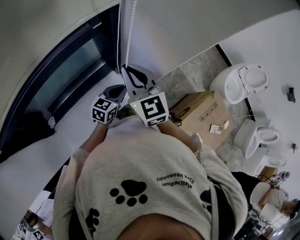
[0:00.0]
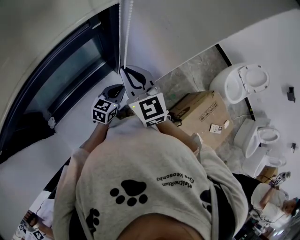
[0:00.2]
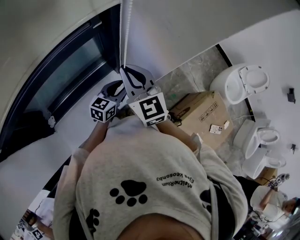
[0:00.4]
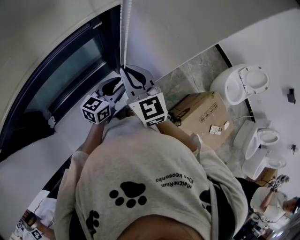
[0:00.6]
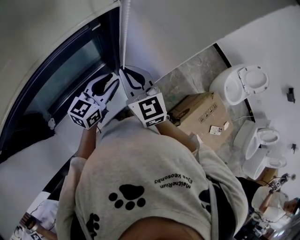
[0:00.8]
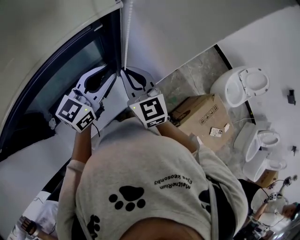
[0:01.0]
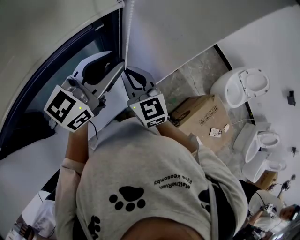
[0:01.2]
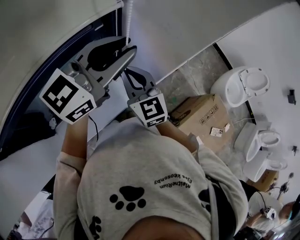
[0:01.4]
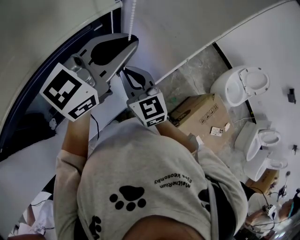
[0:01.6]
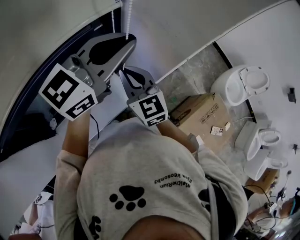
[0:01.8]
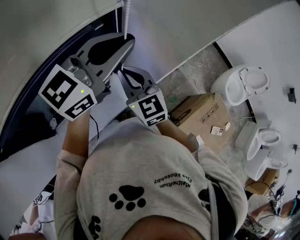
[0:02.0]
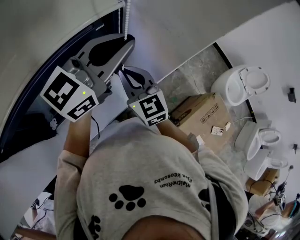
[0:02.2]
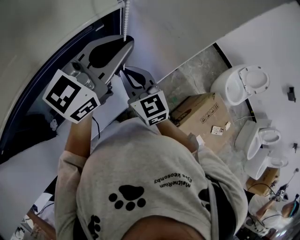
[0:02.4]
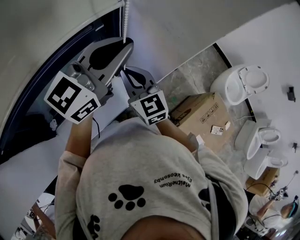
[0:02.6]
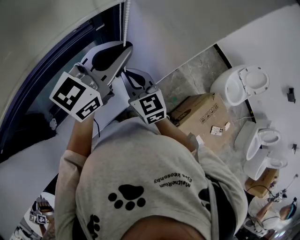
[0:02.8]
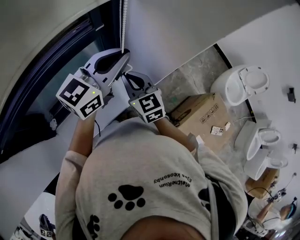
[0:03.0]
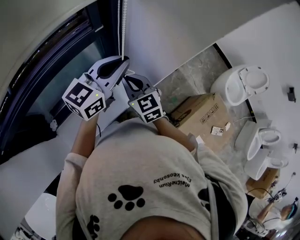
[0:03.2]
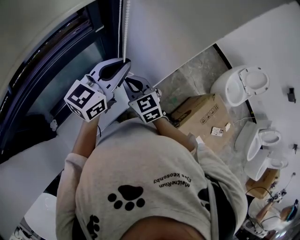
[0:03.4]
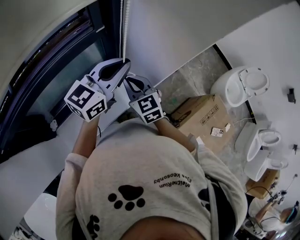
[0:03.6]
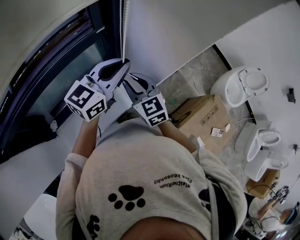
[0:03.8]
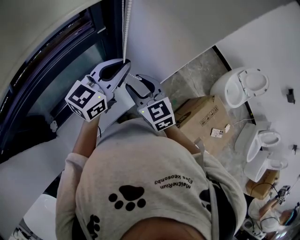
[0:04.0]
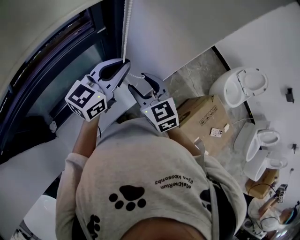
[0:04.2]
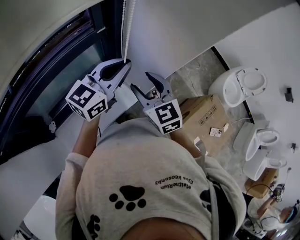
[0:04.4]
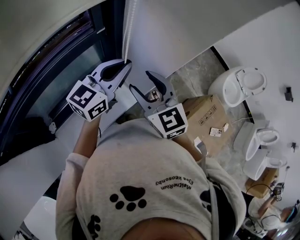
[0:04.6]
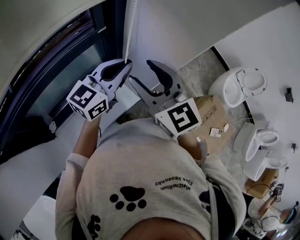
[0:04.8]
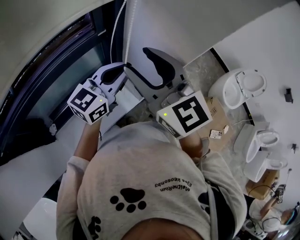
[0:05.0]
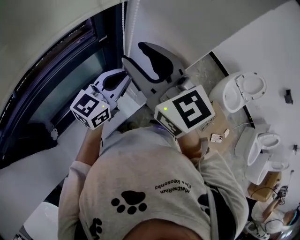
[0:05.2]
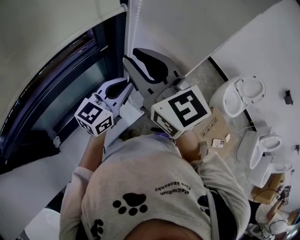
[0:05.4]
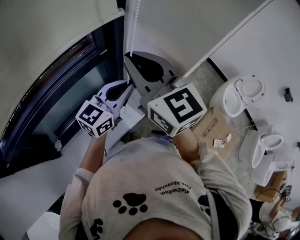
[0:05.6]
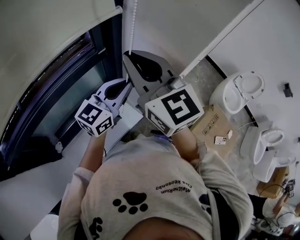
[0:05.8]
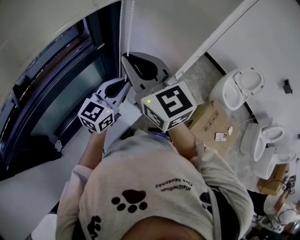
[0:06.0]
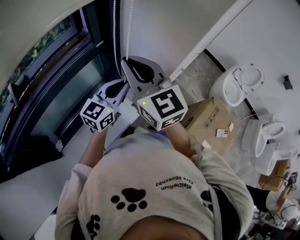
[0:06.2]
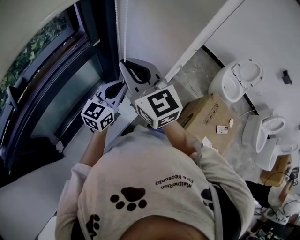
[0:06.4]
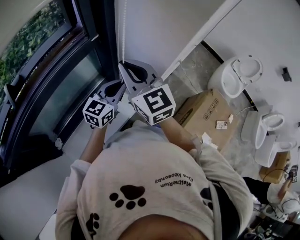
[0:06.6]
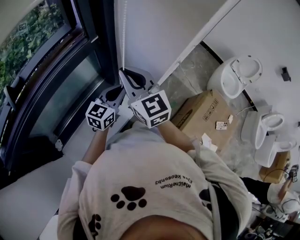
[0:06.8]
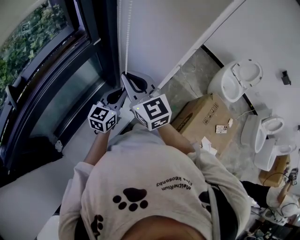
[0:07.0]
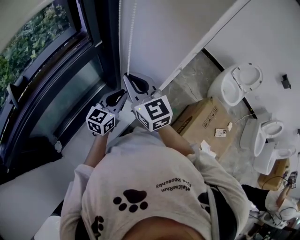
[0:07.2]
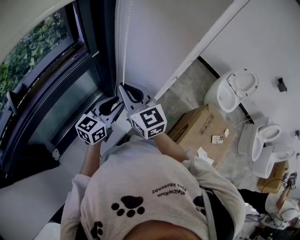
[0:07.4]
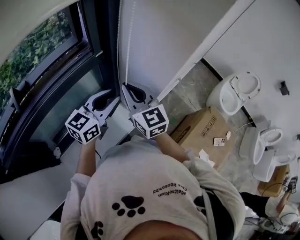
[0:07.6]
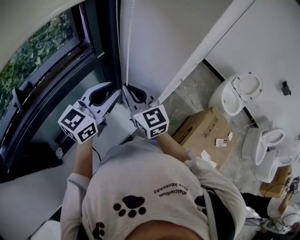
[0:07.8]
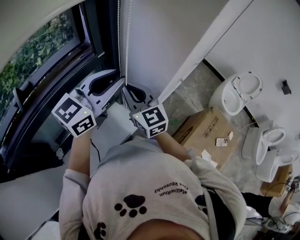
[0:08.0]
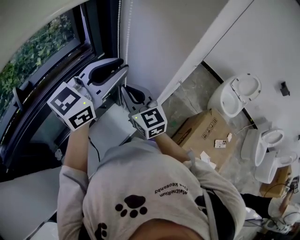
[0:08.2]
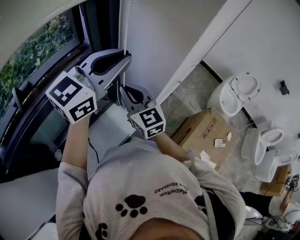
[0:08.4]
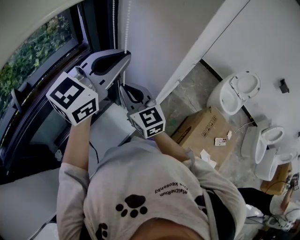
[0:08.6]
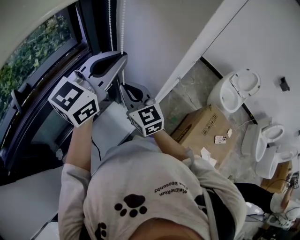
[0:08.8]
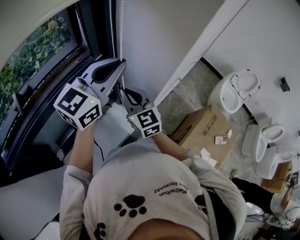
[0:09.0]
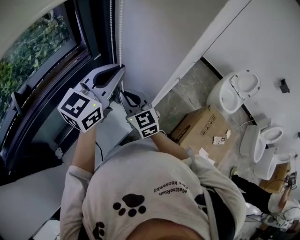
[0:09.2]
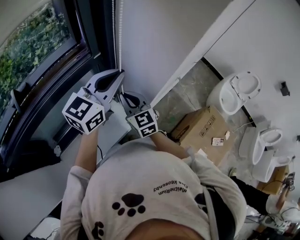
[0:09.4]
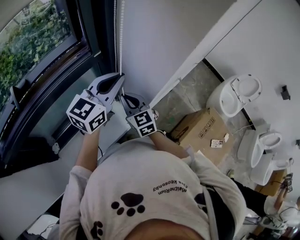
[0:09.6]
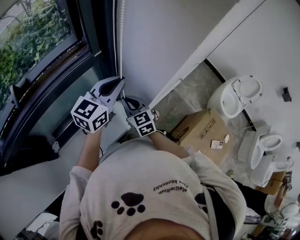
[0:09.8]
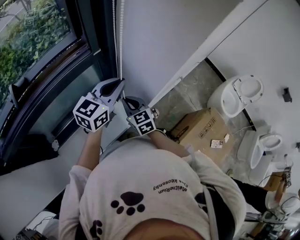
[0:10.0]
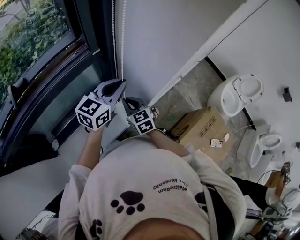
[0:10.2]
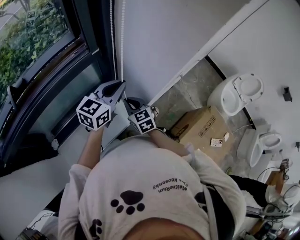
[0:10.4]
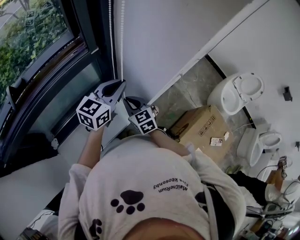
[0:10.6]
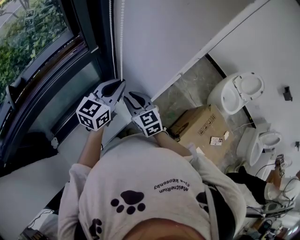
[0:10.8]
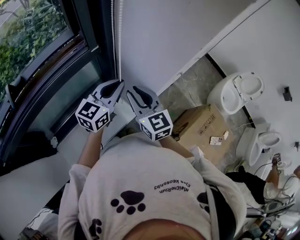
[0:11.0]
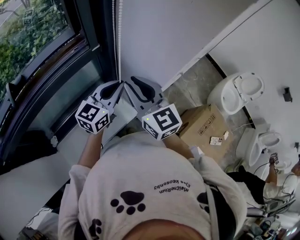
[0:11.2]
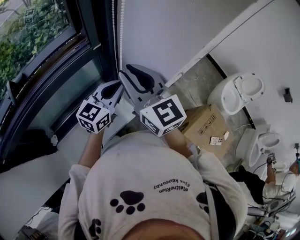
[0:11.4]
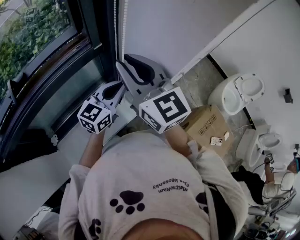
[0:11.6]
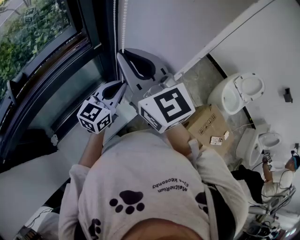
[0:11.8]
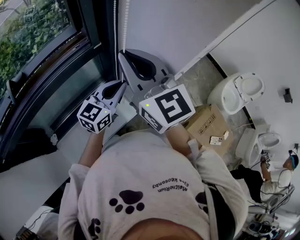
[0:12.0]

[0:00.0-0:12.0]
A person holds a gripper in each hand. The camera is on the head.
0:00.0 to 0:01.6: The left gripper is displaced upward by roughly 35 cm, changes its angle by roughly 30 degrees, and opens, then closes once more.
0:01.6 to 0:03.0: Both grippers move downward, roughly 5 cm.
0:03.0 to 0:04.4: The right gripper changes place by some 5 cm, and opens up.
0:04.4 to 0:06.0: The right gripper goes approximately 15 cm upward, swivels about 20 degrees, and closes its fingers.
0:06.0 to 0:07.6: The right gripper shifts some 15 cm downward; the left gripper travels downward and back again, roughly 15 cm each way, and opens.
0:07.6 to 0:09.0: The left gripper heads upward, covering approximately 15 cm, and closes its fingers.
0:09.0 to 0:10.4: Both grippers travel together downward, about 15 cm. The right gripper swivels roughly 20 degrees.
0:10.4 to 0:12.0: The right gripper heads upward, covering approximately 35 cm, and tilts its fingers some 30 degrees upward.

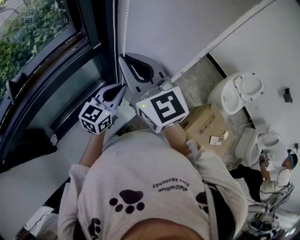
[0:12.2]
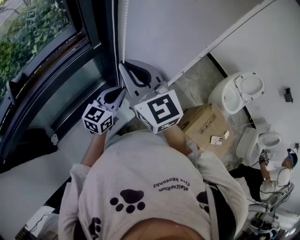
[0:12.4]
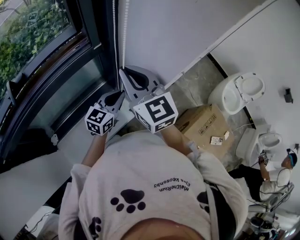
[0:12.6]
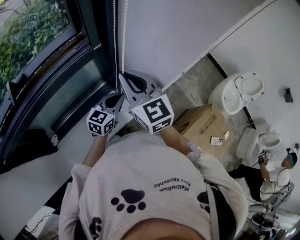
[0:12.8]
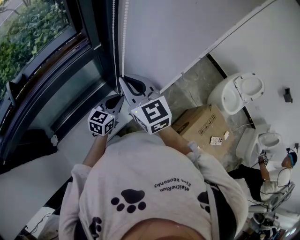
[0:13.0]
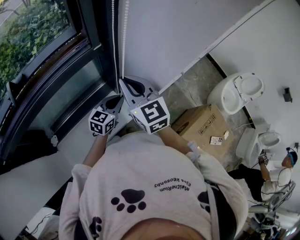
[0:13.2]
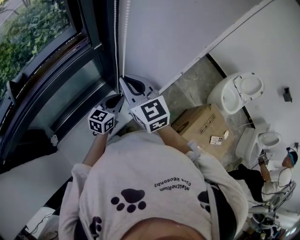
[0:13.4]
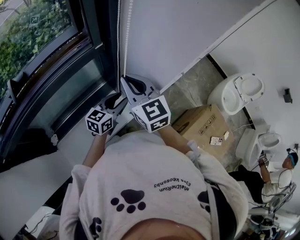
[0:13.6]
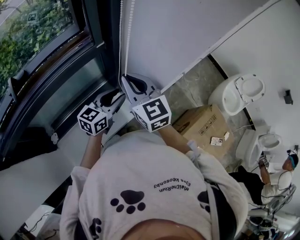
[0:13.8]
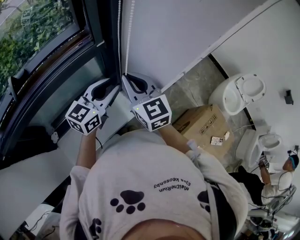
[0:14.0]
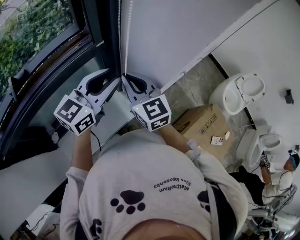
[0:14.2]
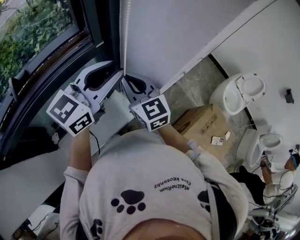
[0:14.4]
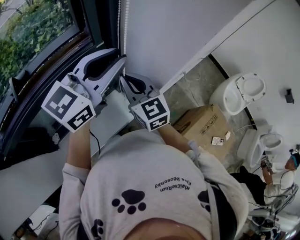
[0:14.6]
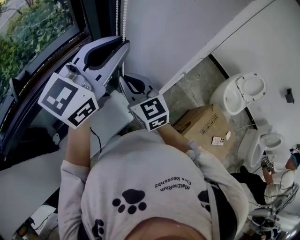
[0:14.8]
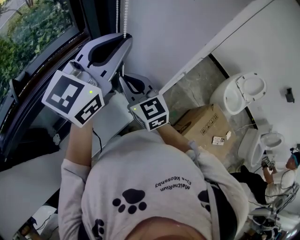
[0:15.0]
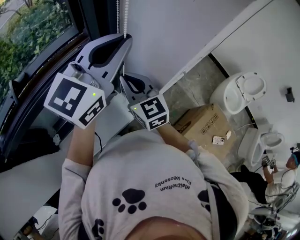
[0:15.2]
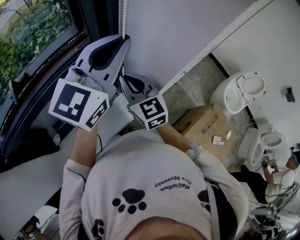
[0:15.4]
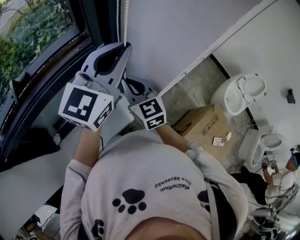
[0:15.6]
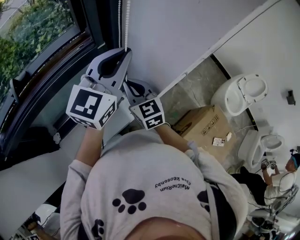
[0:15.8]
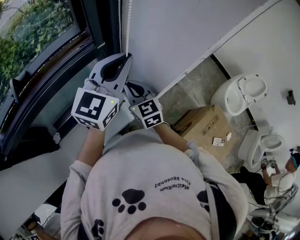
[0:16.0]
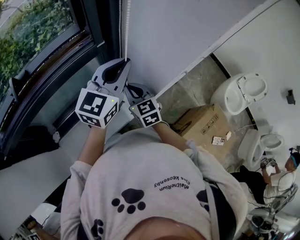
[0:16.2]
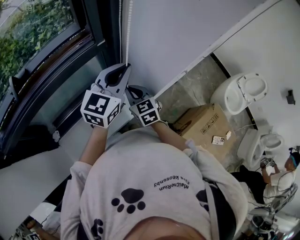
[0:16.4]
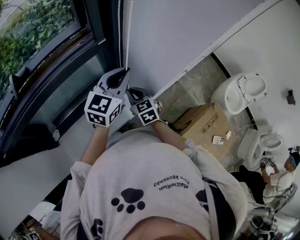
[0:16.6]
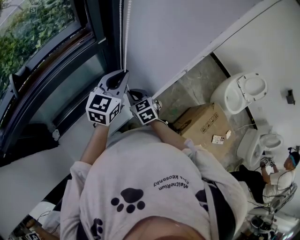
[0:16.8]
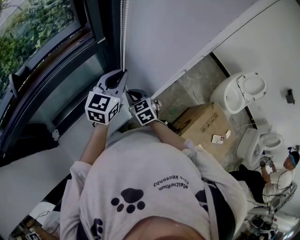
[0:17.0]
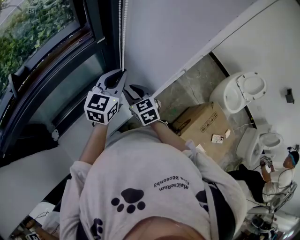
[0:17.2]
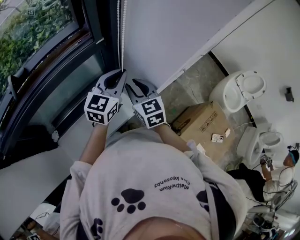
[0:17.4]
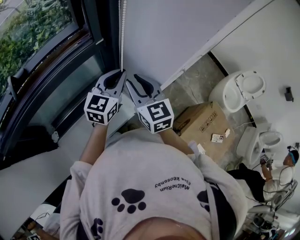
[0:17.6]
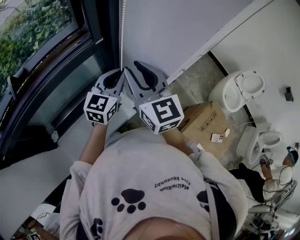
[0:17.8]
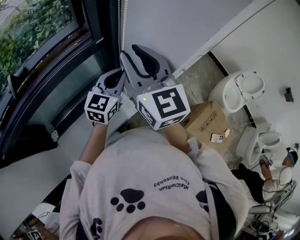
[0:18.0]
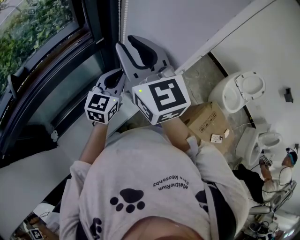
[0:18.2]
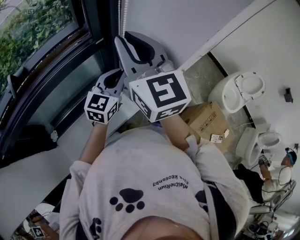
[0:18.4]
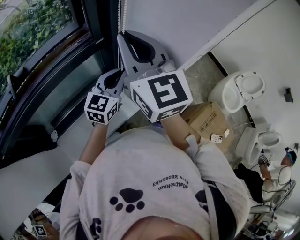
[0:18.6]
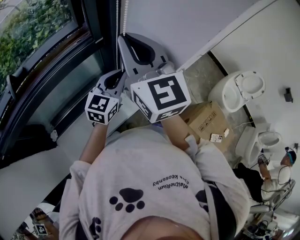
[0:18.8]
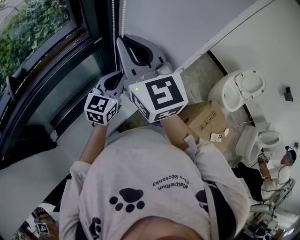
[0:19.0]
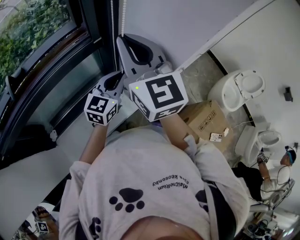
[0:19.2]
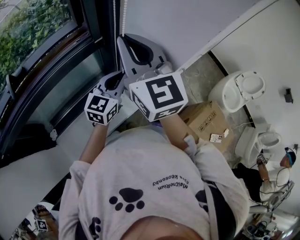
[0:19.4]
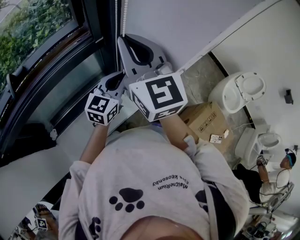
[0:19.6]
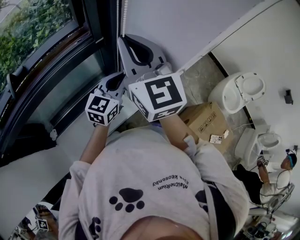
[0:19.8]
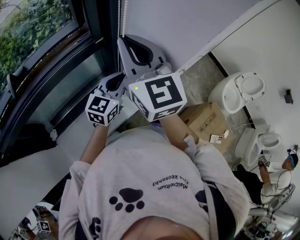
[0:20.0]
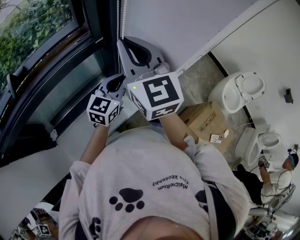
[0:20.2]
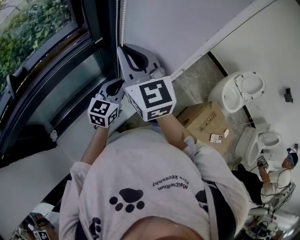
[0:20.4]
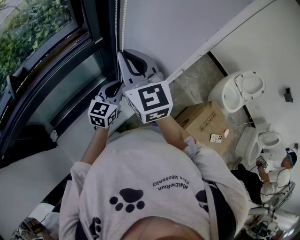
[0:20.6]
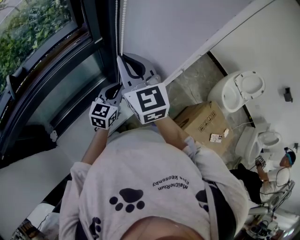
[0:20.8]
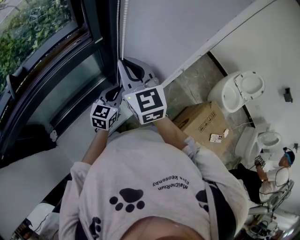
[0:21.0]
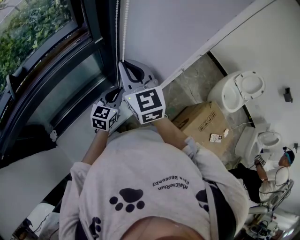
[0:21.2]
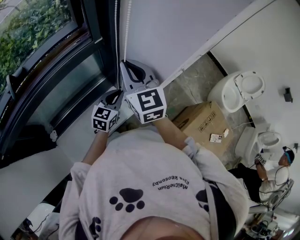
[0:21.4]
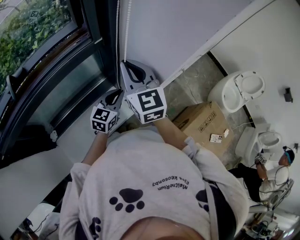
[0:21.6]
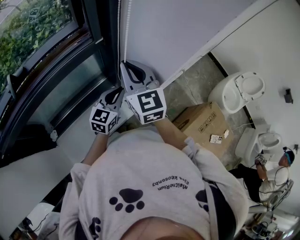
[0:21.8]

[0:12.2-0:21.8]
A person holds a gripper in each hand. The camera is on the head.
0:12.2 to 0:13.8: The right gripper shifts roughly 10 cm downward. The left gripper opens.
0:13.8 to 0:15.4: The left gripper is displaced upward by approximately 30 cm, turns by roughly 30 degrees, and closes.
0:15.4 to 0:17.0: The two grippers go some 20 cm downward. The right gripper turns by some 30 degrees. Meanwhile the left gripper swivels roughly 20 degrees.
0:17.0 to 0:18.6: The right gripper goes roughly 40 cm upward, tips its fingers upward by approximately 40 degrees, and opens, then closes once more.
0:18.6 to 0:20.2: The grippers stay close to where they were, moving slightly.
0:20.2 to 0:21.8: The left gripper travels downward by roughly 5 cm. Meanwhile the right gripper is displaced downward by roughly 10 cm.

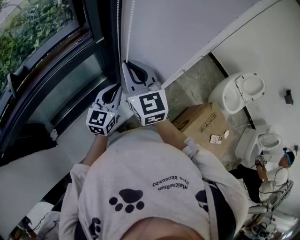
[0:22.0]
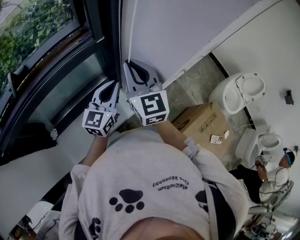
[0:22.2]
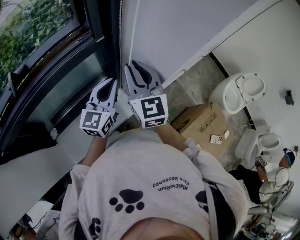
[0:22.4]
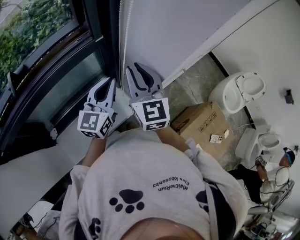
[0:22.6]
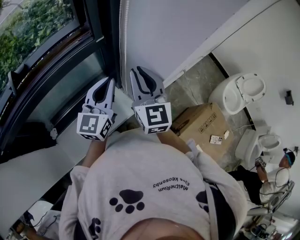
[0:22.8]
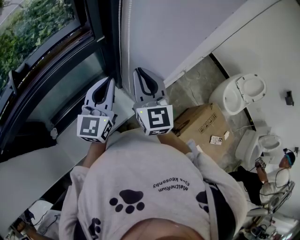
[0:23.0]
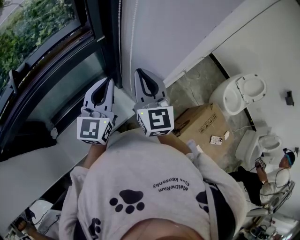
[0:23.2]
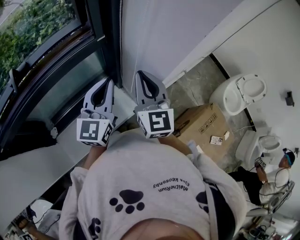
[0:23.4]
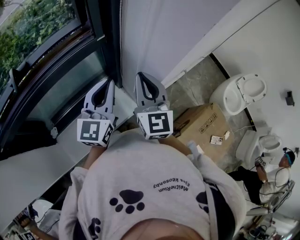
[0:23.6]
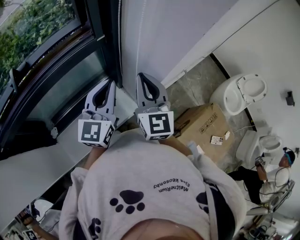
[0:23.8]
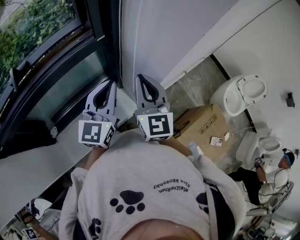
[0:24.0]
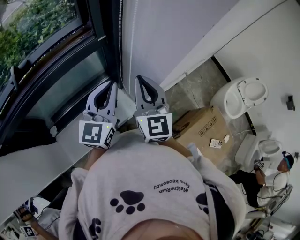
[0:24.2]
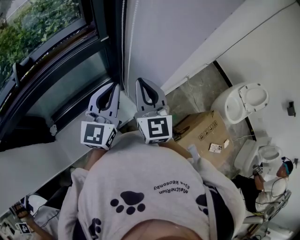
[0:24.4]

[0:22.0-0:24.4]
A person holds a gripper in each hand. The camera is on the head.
0:22.0 to 0:23.2: The left gripper heads upward, covering about 10 cm, while the right gripper changes place by some 5 cm.
0:23.2 to 0:24.4: The grippers make only small movements.
